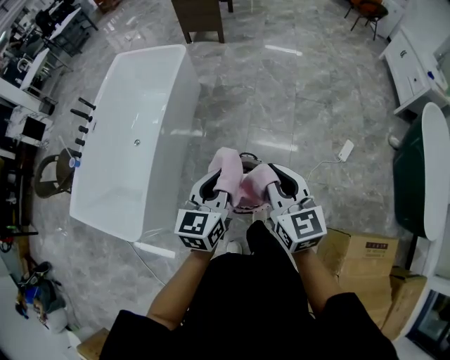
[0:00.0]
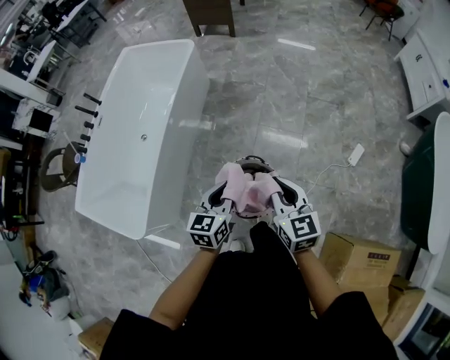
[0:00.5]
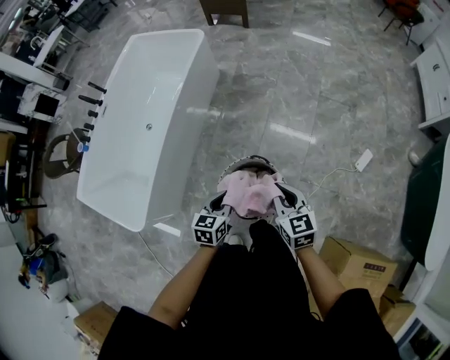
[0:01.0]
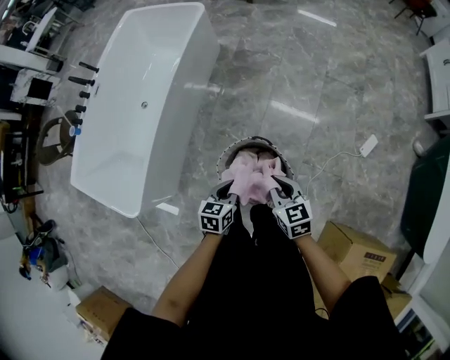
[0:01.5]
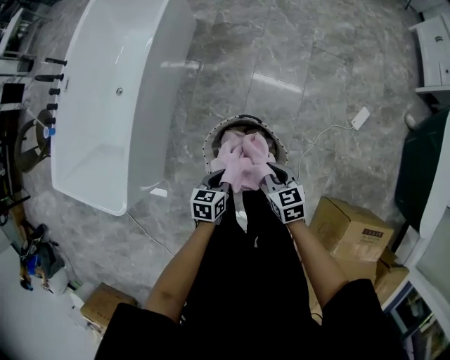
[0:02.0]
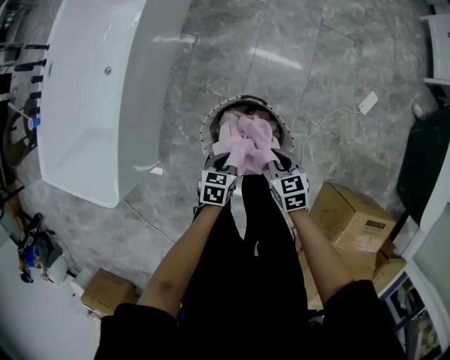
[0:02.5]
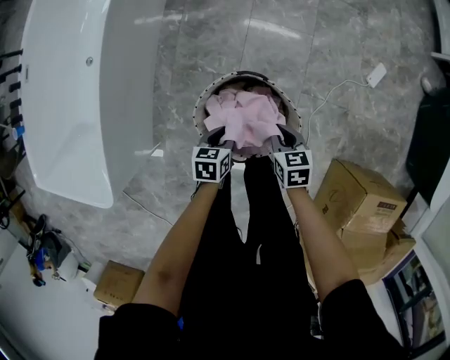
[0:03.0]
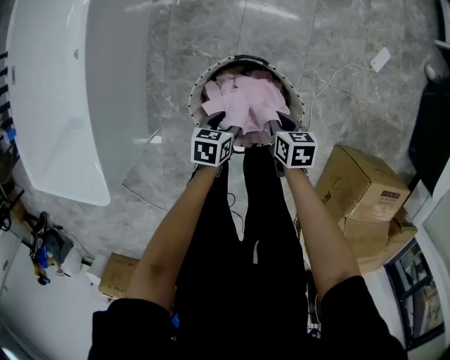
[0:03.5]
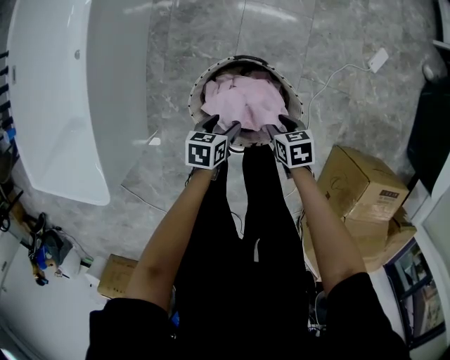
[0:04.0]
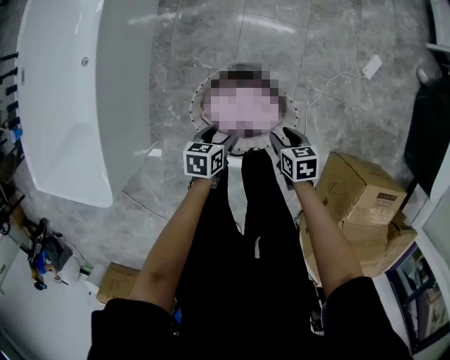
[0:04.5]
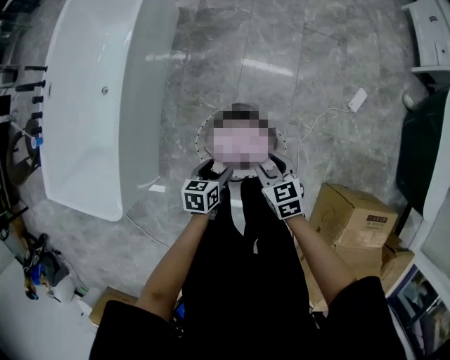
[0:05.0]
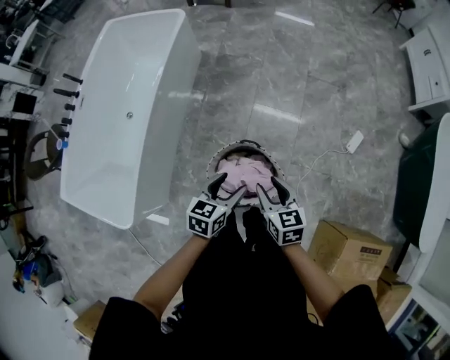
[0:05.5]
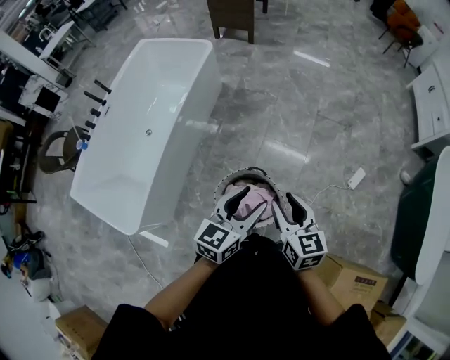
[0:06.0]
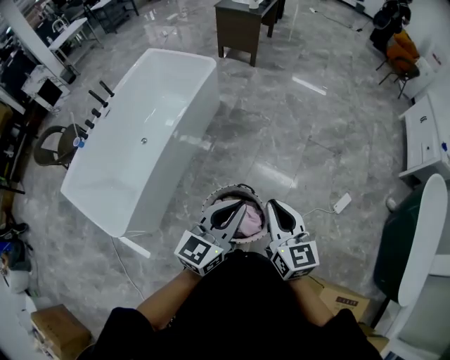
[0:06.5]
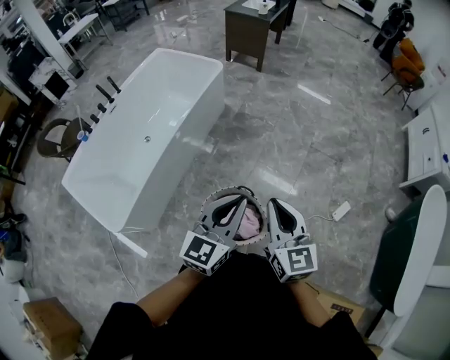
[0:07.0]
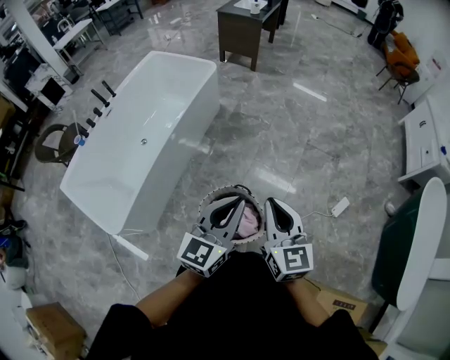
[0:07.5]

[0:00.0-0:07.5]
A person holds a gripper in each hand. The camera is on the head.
0:00.0 to 0:02.0: Both grippers travel together downward, approximately 40 cm. The left gripper turns by approximately 40 degrees; the right gripper points its fingers about 30 degrees further downward.
0:02.0 to 0:04.0: The two grippers go roughly 25 cm downward. The right gripper rotates about 30 degrees, and opens its fingers. Meanwhile the left gripper opens up.
0:04.0 to 0:05.5: The two grippers go approximately 40 cm upward. The left gripper turns by roughly 30 degrees; the right gripper turns by approximately 30 degrees.
0:05.5 to 0:07.5: The two grippers go approximately 25 cm upward. The left gripper points its fingers approximately 30 degrees further upward, and closes up; the right gripper turns by approximately 30 degrees, and closes its fingers.

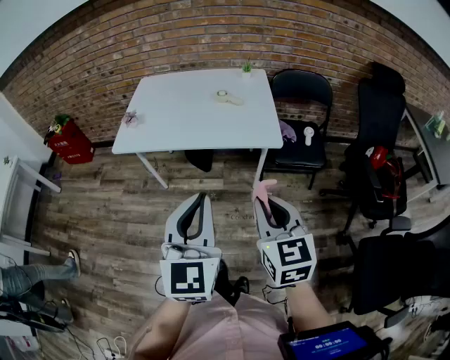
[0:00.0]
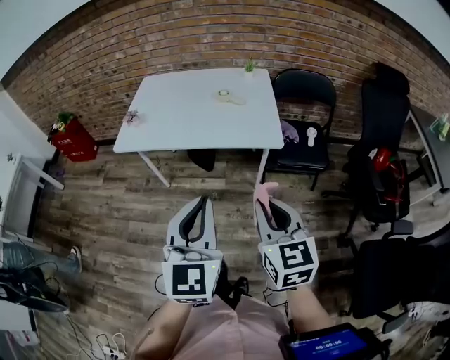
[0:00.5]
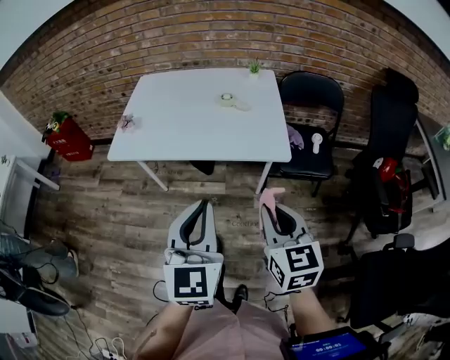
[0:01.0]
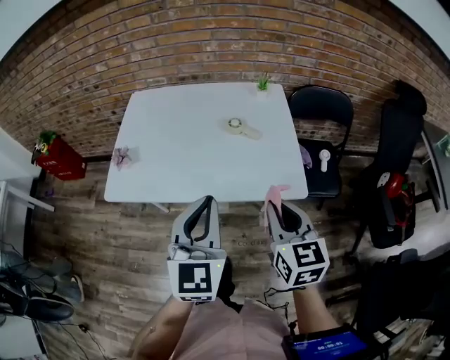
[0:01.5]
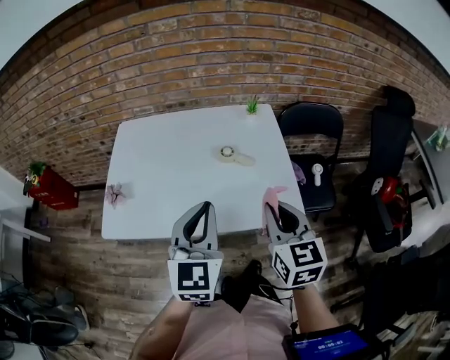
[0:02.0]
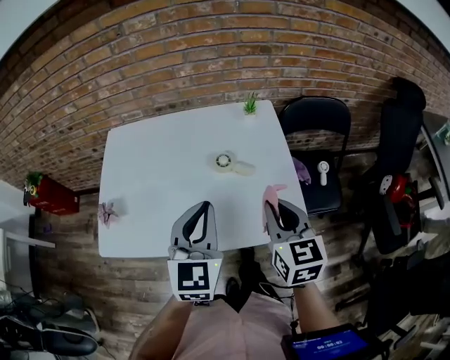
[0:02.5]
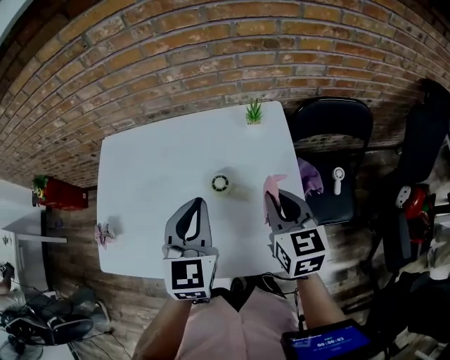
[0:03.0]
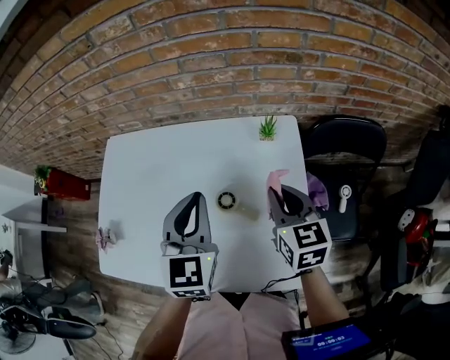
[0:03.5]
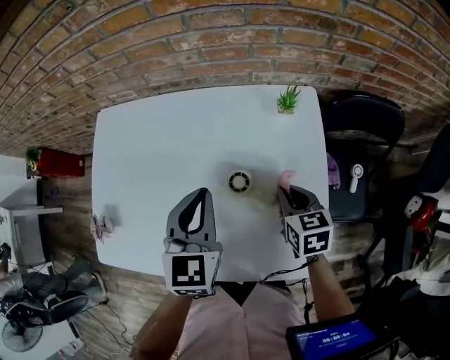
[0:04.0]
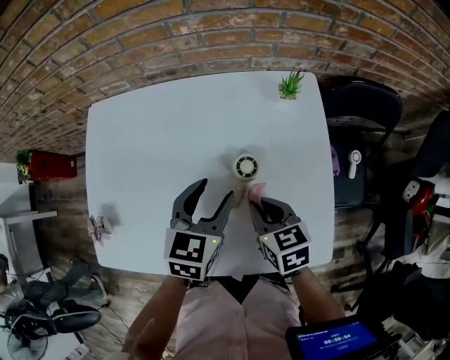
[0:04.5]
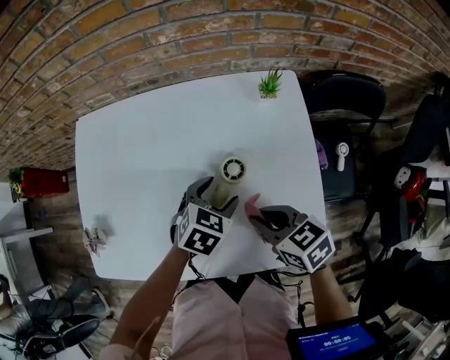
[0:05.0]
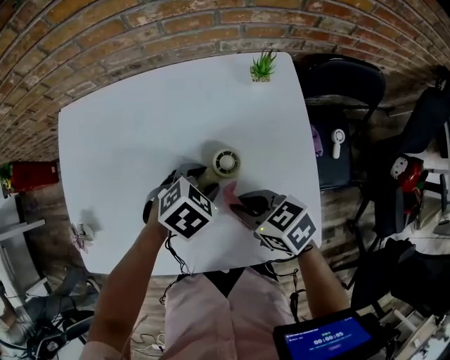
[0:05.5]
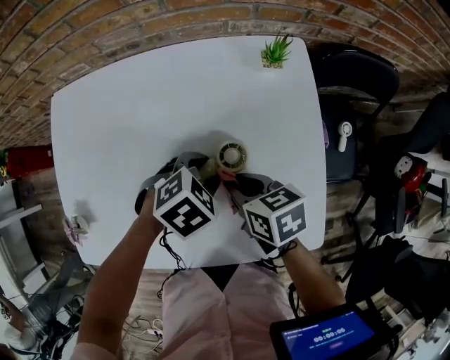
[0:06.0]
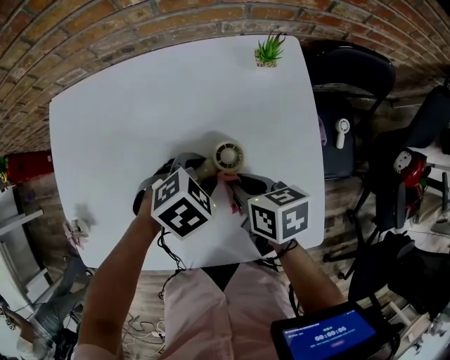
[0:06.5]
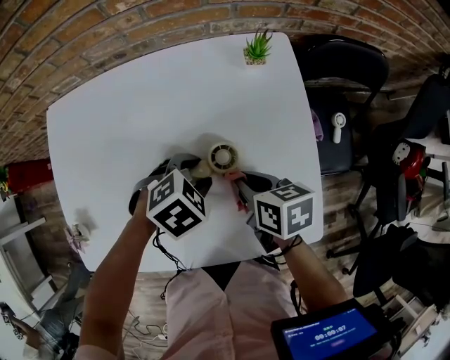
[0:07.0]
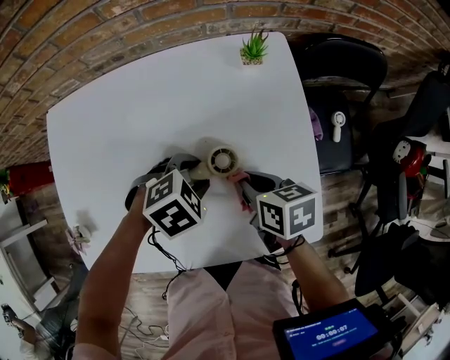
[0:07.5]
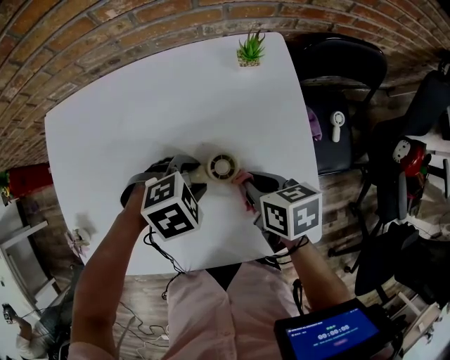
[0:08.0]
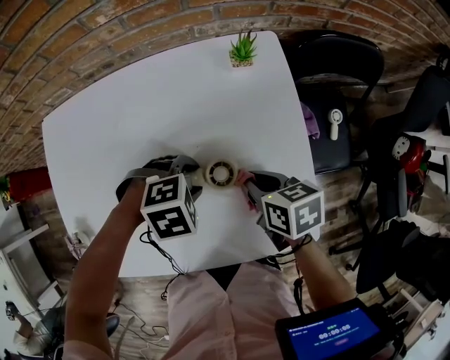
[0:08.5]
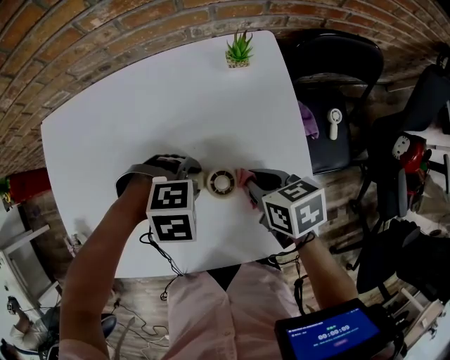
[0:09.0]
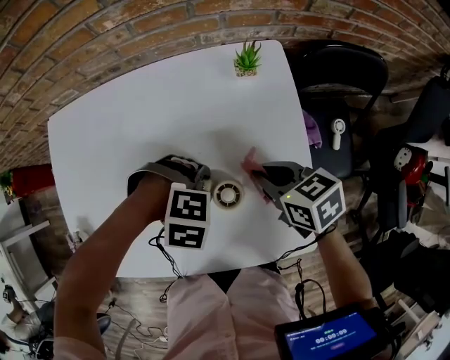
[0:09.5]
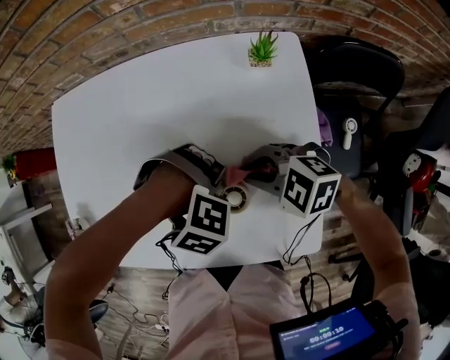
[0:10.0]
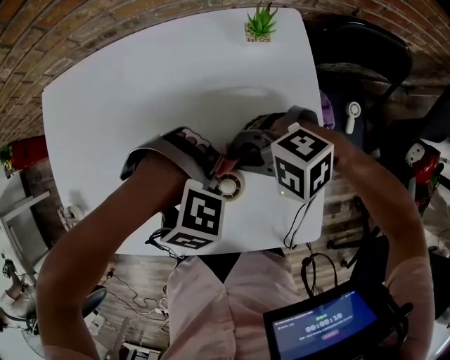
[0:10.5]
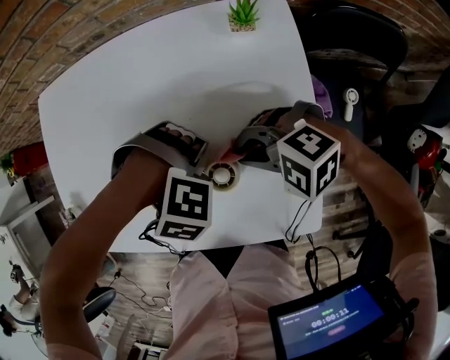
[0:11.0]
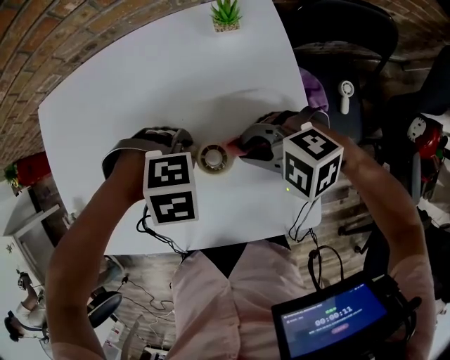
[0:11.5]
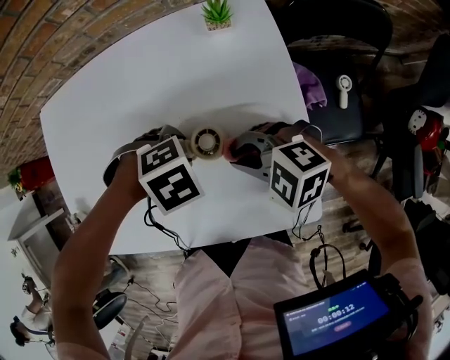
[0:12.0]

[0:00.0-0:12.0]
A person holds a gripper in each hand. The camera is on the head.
0:00.0 to 0:02.0: The grippers both shift forward by approximately 35 cm.
0:02.0 to 0:04.0: Both grippers move forward and downward, approximately 30 cm. The right gripper turns by some 30 degrees.
0:04.0 to 0:06.0: The right gripper ends up some 10 cm from where it was, and turns by some 20 degrees; the left gripper is displaced downward by approximately 15 cm, tilts its fingers some 40 degrees downward, and opens.
0:06.0 to 0:08.0: The right gripper changes place by roughly 5 cm.
0:08.0 to 0:10.0: The left gripper rotates around the line of its fingers by roughly 50 degrees, clockwise from behind; the right gripper twists roughly 70 degrees counterclockwise, seen from behind.
0:10.0 to 0:12.0: The left gripper rolls counterclockwise, seen from behind, by about 40 degrees.

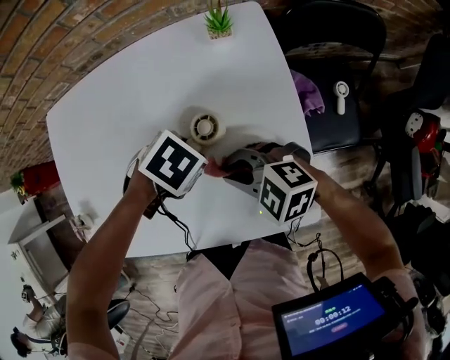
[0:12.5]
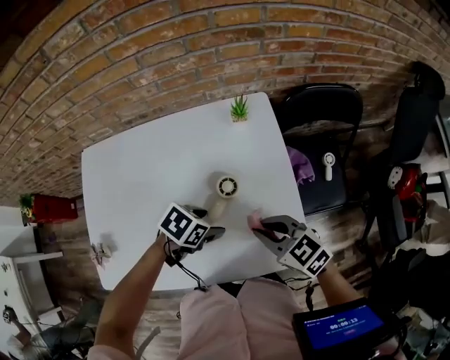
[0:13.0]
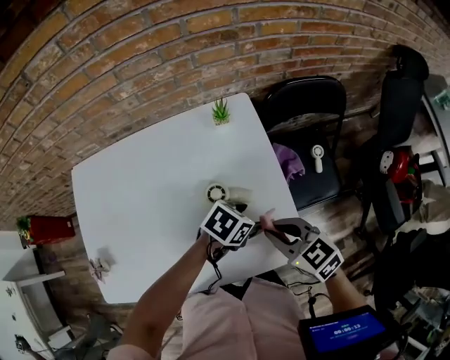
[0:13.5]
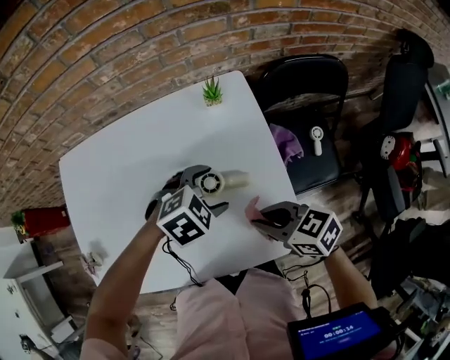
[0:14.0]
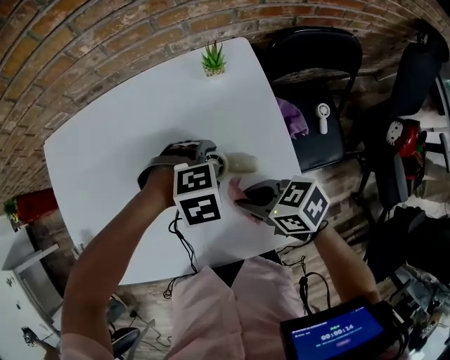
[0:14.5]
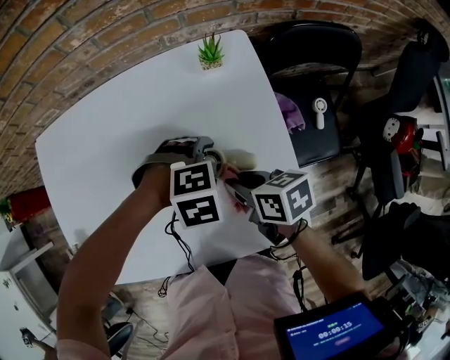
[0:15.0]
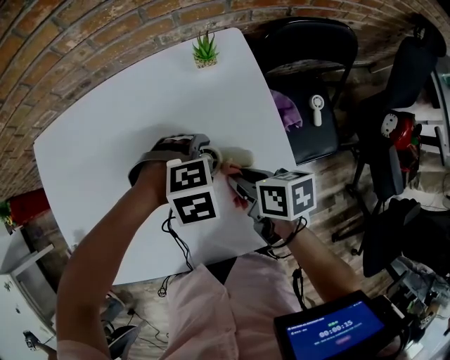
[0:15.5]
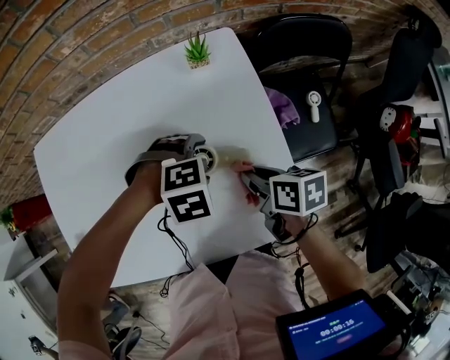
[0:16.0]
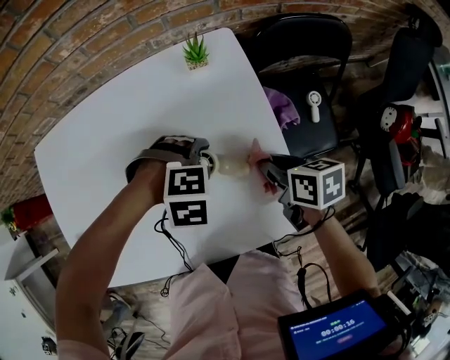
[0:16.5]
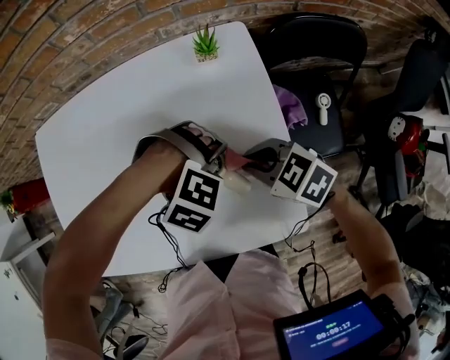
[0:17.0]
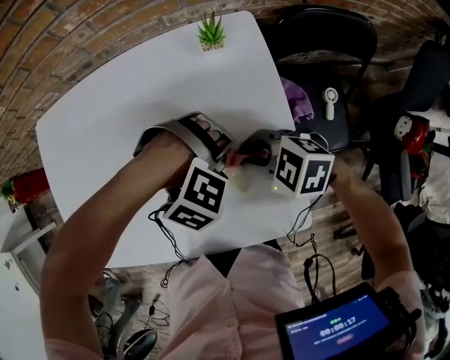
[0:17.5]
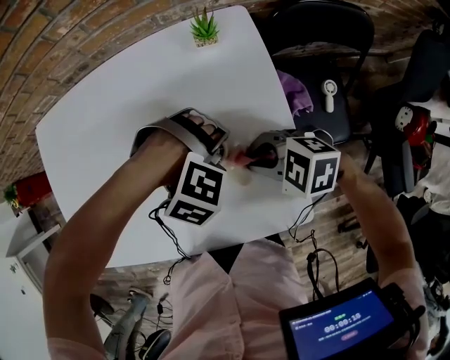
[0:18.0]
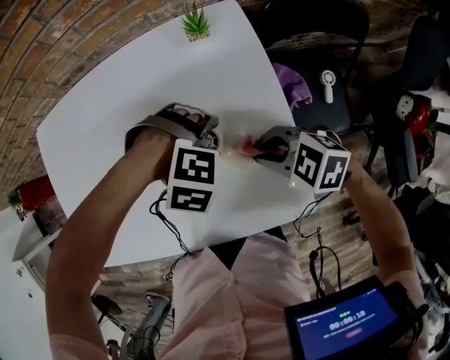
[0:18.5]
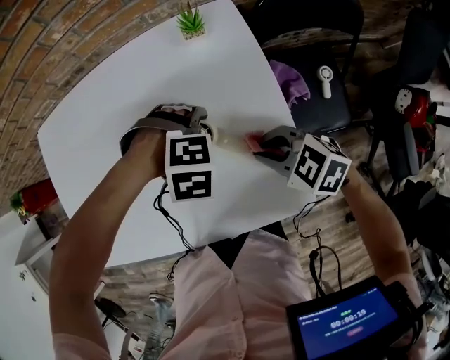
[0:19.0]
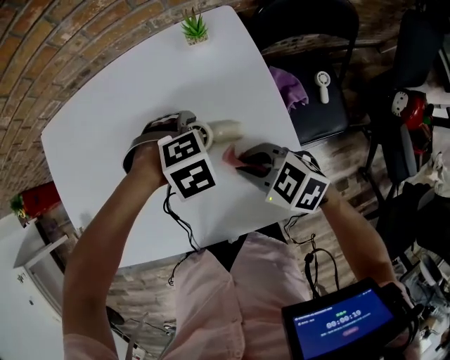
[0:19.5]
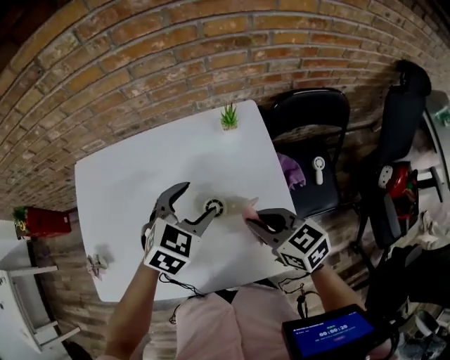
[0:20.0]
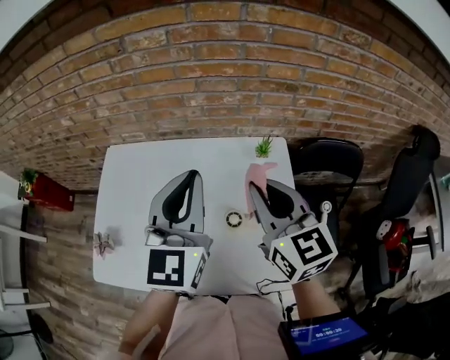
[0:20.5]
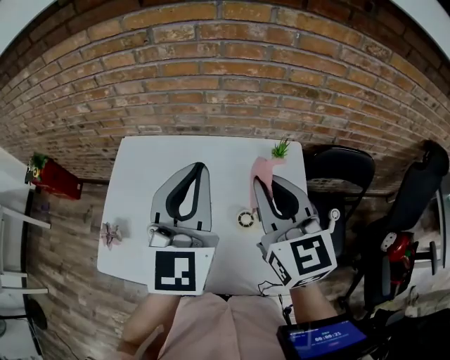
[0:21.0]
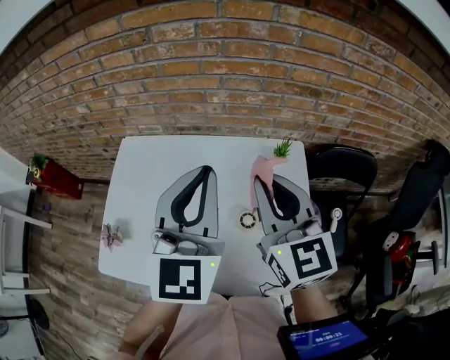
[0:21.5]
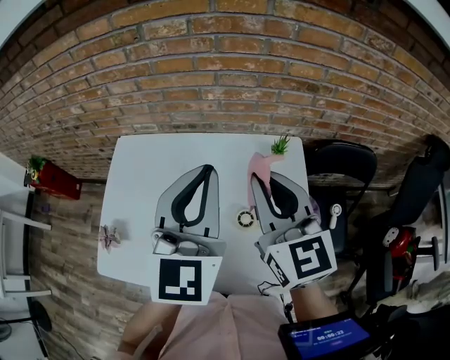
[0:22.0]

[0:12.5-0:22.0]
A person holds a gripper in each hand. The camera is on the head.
0:12.5 to 0:14.5: The right gripper reaches roughly 10 cm upward, then returns, and rotates around the line of its fingers by some 50 degrees, clockwise from behind; the left gripper rotates around the line of its fingers by roughly 50 degrees, clockwise from behind, and opens.
0:14.5 to 0:16.5: The right gripper shifts by some 10 cm, and swivels approximately 40 degrees.
0:16.5 to 0:18.0: The right gripper ends up approximately 10 cm from where it was, and rolls counterclockwise, seen from behind, by roughly 70 degrees. Meanwhile the left gripper turns by roughly 30 degrees.
0:18.0 to 0:20.0: The grippers both shift upward by some 10 cm. The right gripper rotates approximately 50 degrees. Meanwhile the left gripper rotates around the line of its fingers by roughly 70 degrees, counterclockwise from behind.
0:20.0 to 0:22.0: The left gripper goes some 25 cm upward, tips its fingers upward by some 40 degrees, and closes its fingers; the right gripper is displaced upward and forward by about 25 cm, and rotates approximately 40 degrees.
